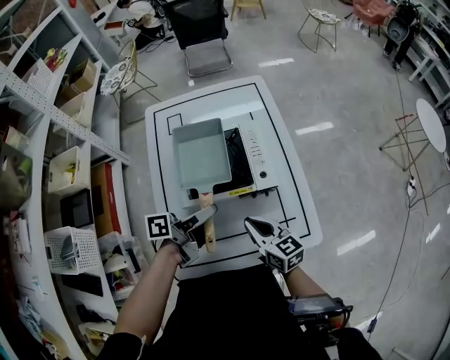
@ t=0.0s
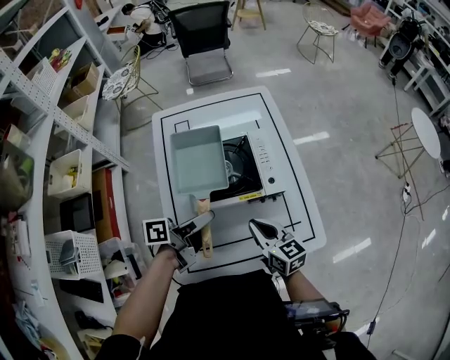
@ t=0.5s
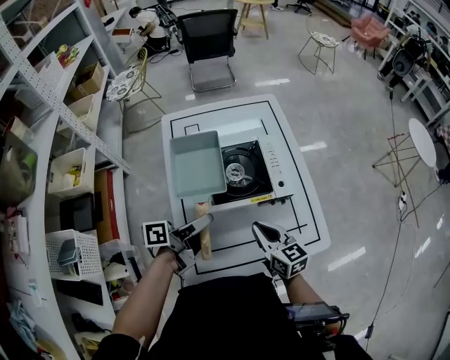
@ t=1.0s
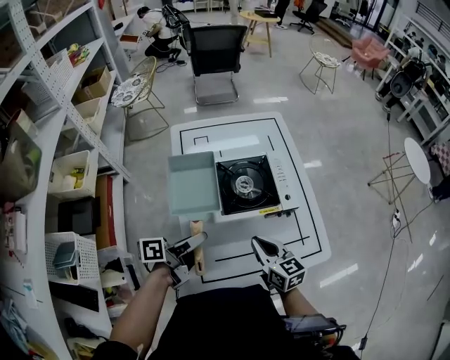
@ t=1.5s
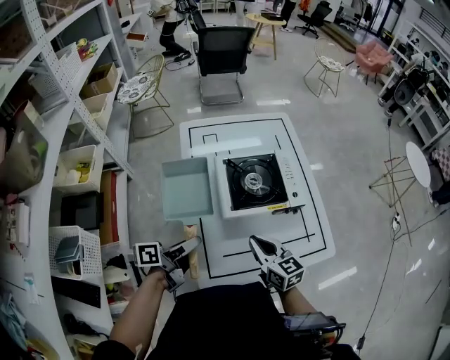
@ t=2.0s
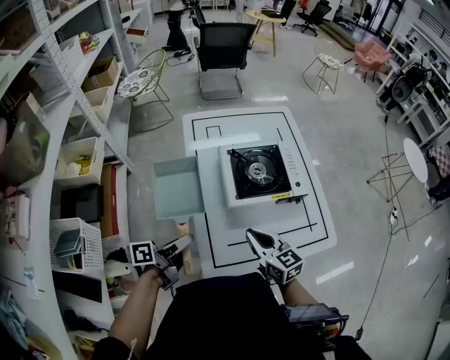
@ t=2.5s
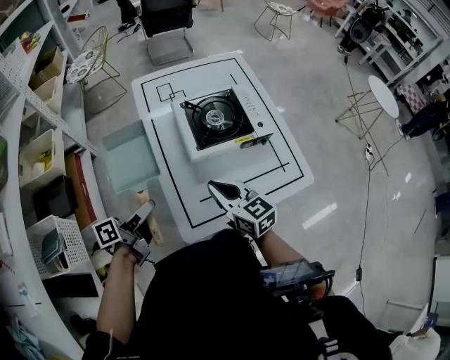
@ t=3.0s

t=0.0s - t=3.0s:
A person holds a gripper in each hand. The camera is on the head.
t=0.0s - t=1.5s: The right gripper shifts about 10 cm to the left. Meanwhile the left gripper moves to the left and backward, about 15 cm.
t=1.5s - t=3.0s: The right gripper shifts about 10 cm to the left. The left gripper travels to the left and backward by some 15 cm.

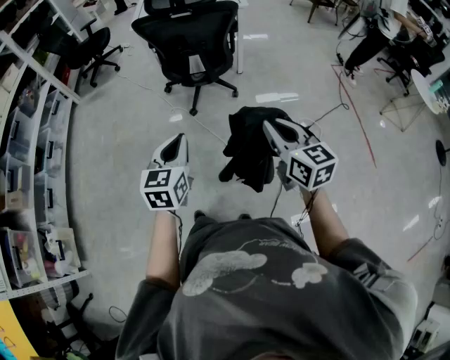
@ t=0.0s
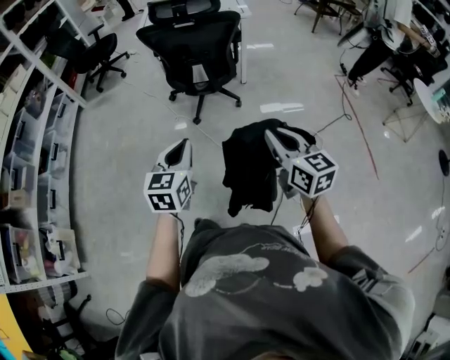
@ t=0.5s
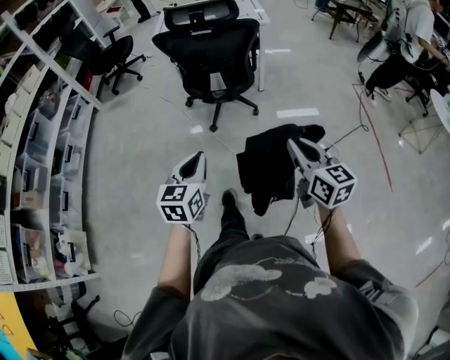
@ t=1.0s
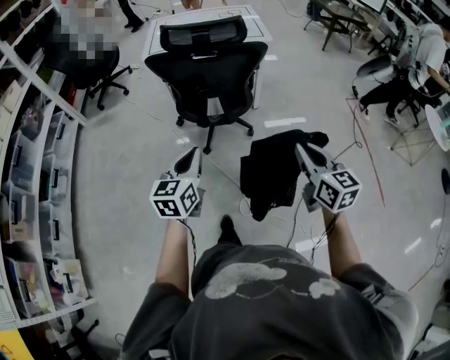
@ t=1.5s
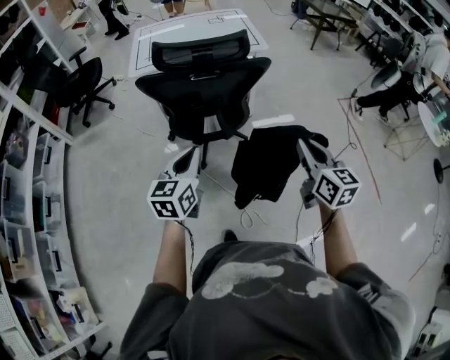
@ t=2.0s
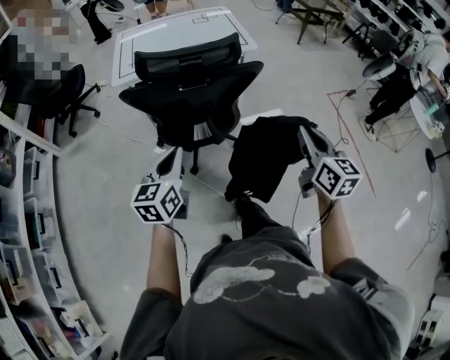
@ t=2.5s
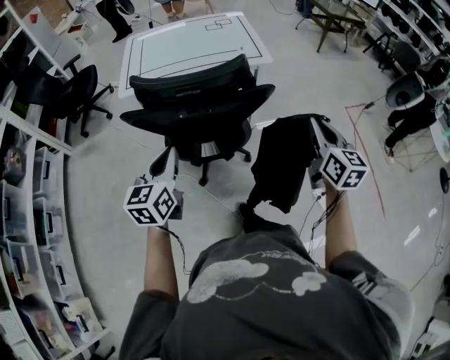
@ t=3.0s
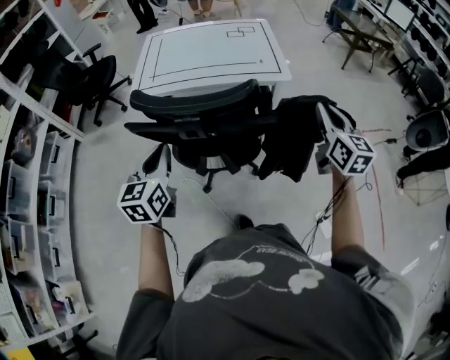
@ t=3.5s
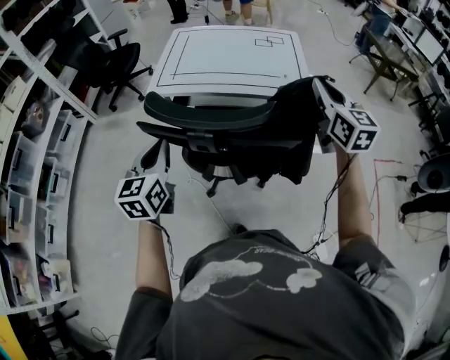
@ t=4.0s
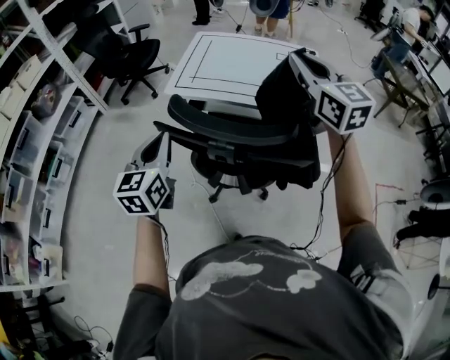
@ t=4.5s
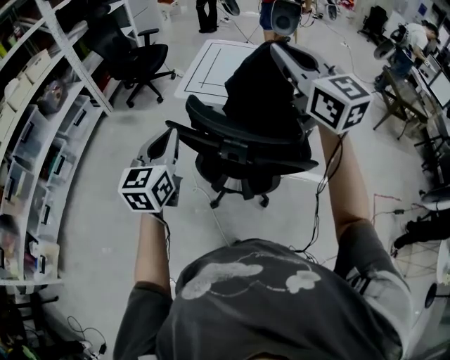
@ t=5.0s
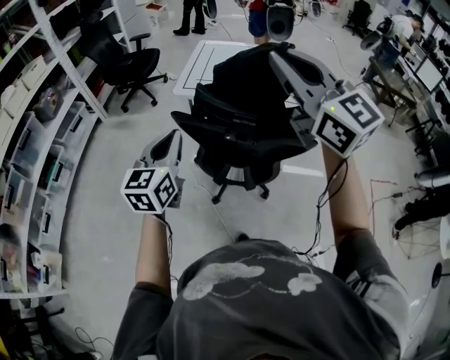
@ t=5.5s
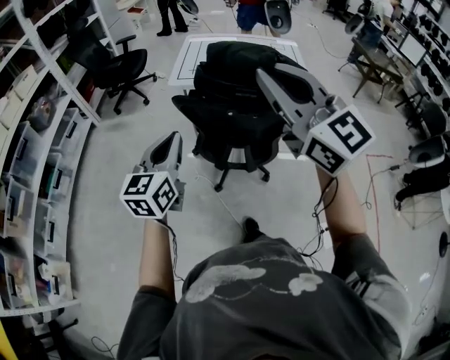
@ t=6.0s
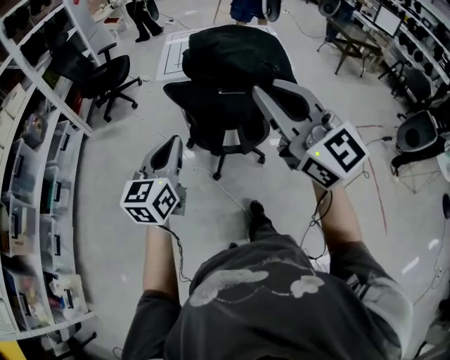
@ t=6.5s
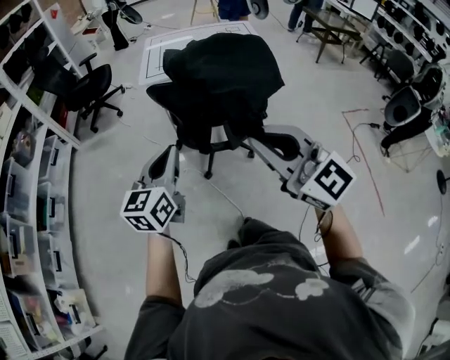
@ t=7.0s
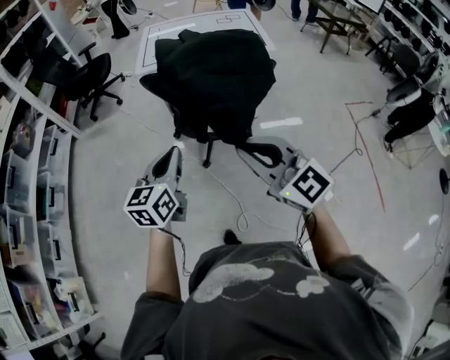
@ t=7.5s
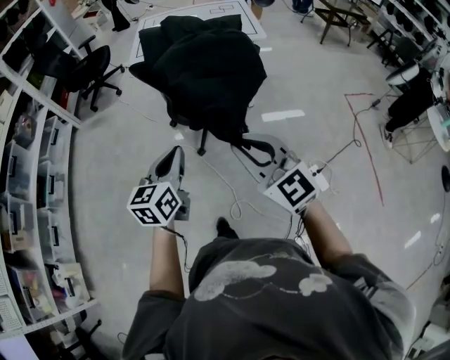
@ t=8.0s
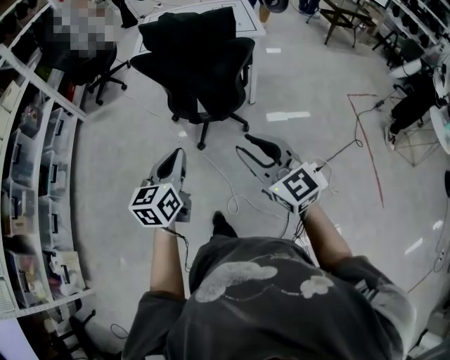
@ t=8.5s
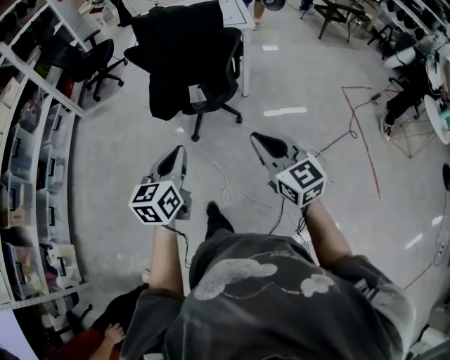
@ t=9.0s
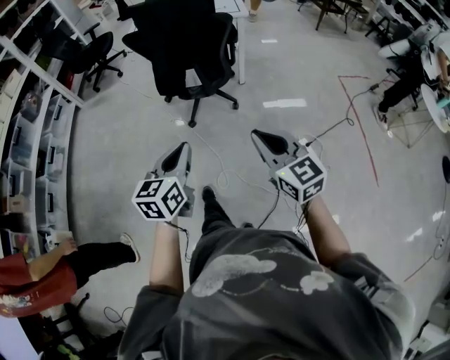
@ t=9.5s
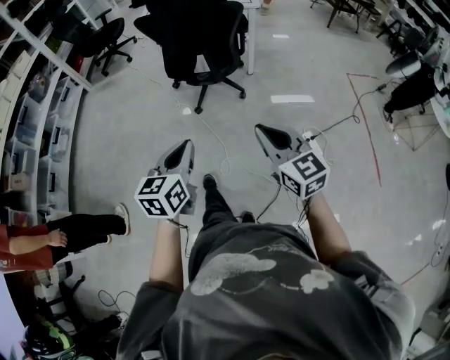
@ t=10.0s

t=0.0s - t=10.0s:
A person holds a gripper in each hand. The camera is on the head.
t=0.0s - t=2.0s: Both grippers travel together forward, about 35 cm.
t=2.0s - t=4.0s: The left gripper travels forward by some 25 cm, and rotates approximately 30 degrees. Meanwhile the right gripper goes roughly 50 cm forward.
t=4.0s - t=6.0s: The right gripper travels to the left, backward and upward by some 40 cm, and turns by approximately 30 degrees, while the left gripper is displaced backward, to the left and upward by approximately 15 cm.
t=6.0s - t=8.0s: Both grippers move backward and downward, roughly 25 cm.
t=8.0s - t=10.0s: The right gripper is displaced backward and to the right by about 25 cm, and opens, then closes once more. The left gripper heads backward, covering roughly 30 cm.

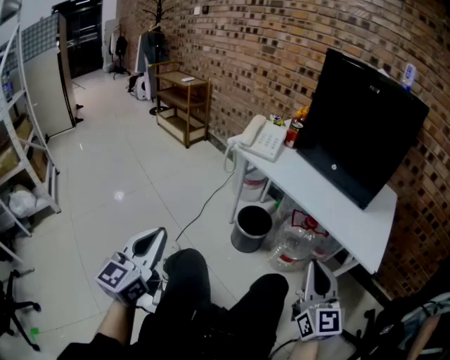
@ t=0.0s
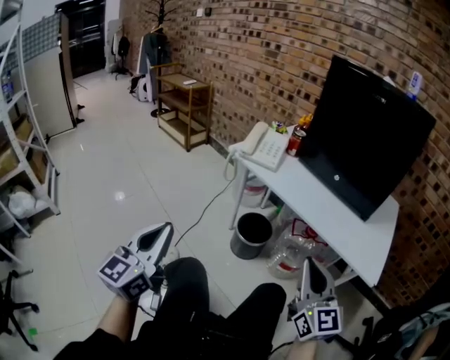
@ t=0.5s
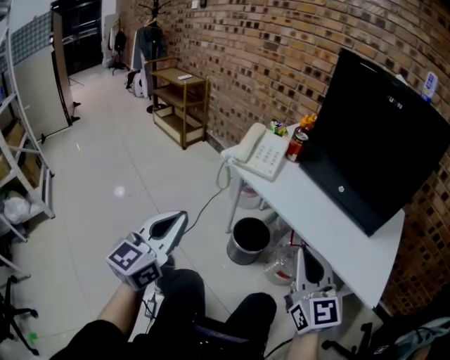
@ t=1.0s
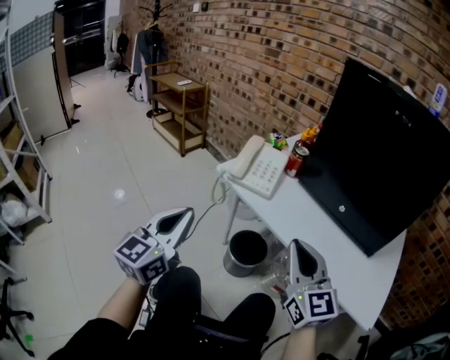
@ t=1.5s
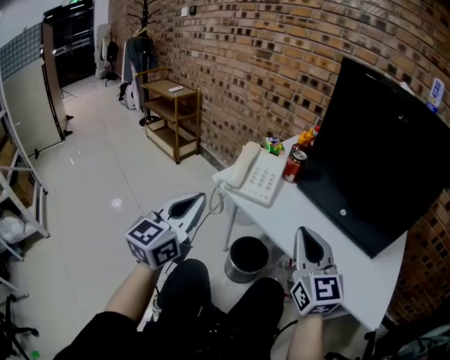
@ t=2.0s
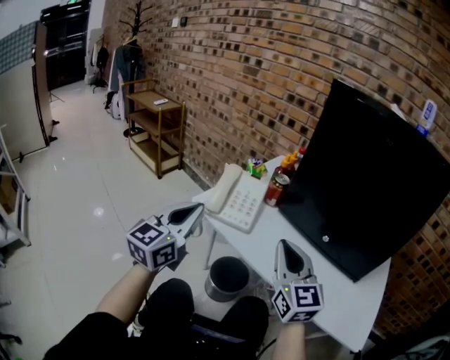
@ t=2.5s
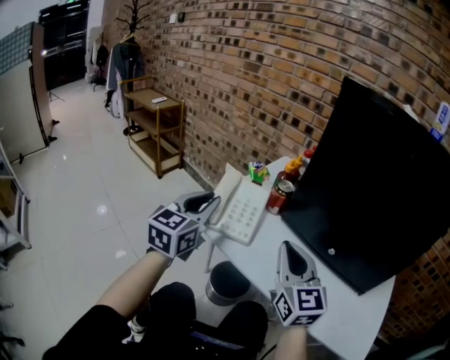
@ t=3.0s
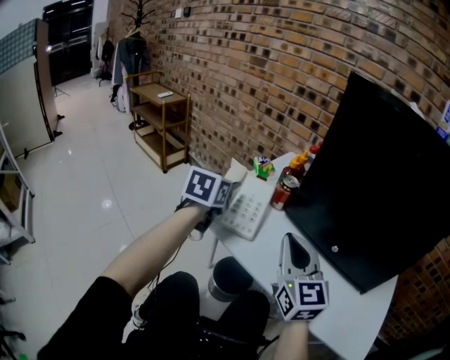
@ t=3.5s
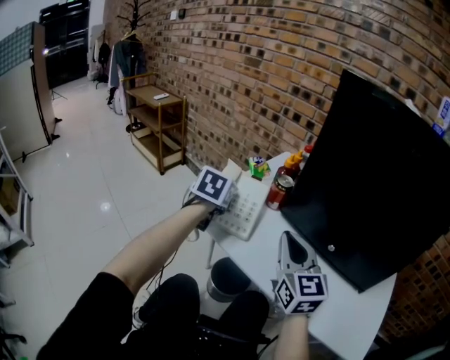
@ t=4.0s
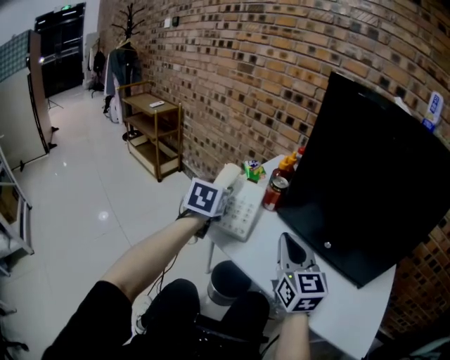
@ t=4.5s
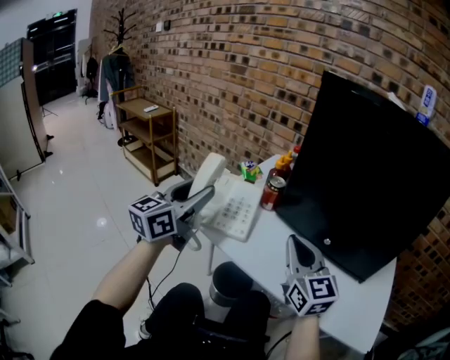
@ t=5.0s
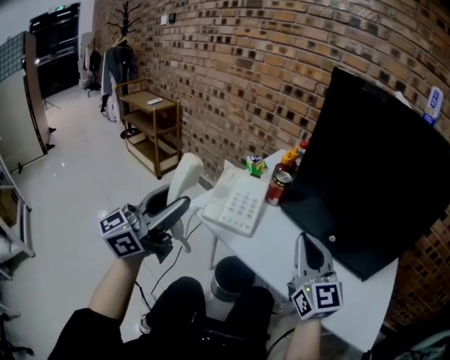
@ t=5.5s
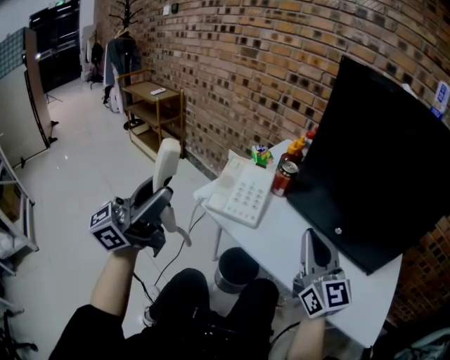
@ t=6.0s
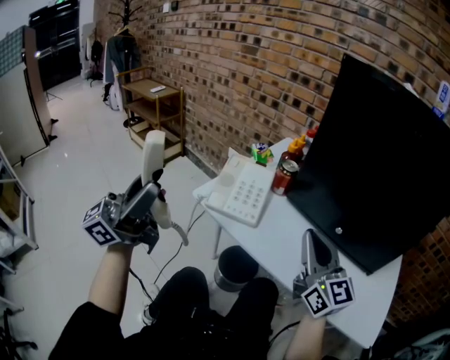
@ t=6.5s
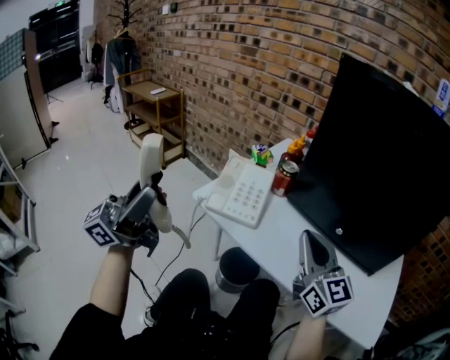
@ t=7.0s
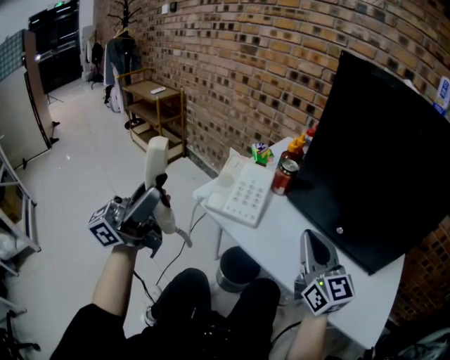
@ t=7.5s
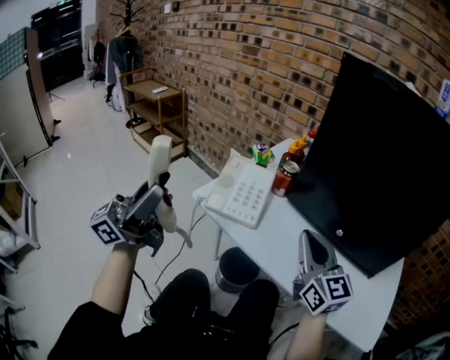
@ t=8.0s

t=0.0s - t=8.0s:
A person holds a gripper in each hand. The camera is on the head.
t=0.0s - t=2.0s: Both grippers move forward, some 30 cm.
t=2.0s - t=4.0s: The left gripper travels forward by approximately 30 cm, angles its fingers downward, by roughly 40 degrees, and opens up; the right gripper shifts some 10 cm forward.
t=4.0s - t=6.0s: The left gripper moves backward and upward, approximately 30 cm, and tilts its fingers some 70 degrees upward. Meanwhile the right gripper shifts about 5 cm backward.
t=6.0s - t=8.0s: The grippers move only a little.

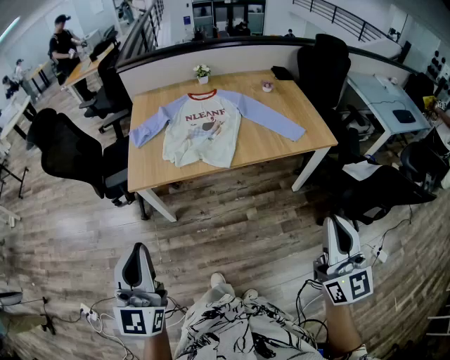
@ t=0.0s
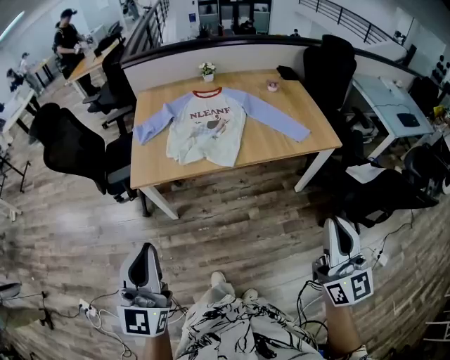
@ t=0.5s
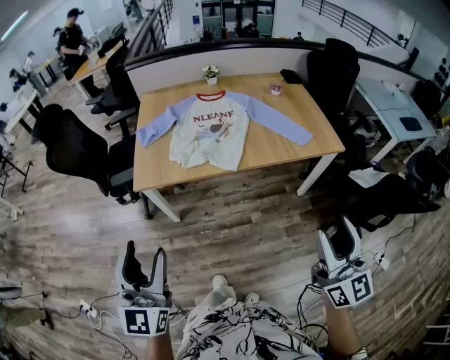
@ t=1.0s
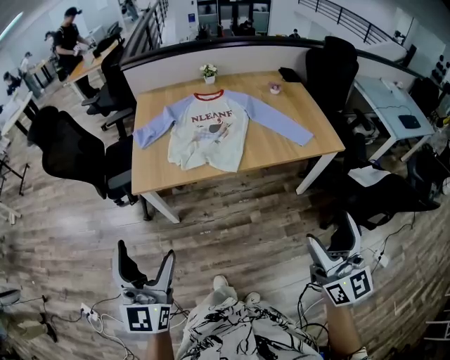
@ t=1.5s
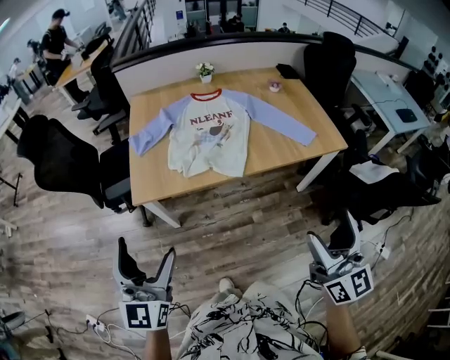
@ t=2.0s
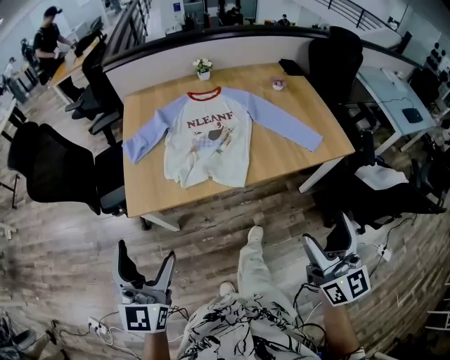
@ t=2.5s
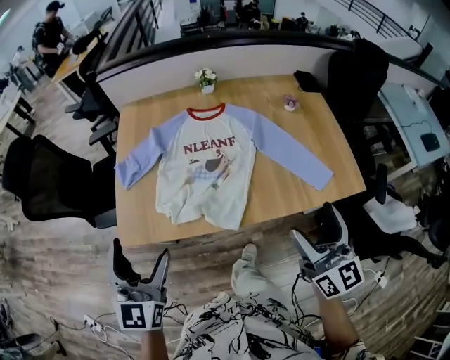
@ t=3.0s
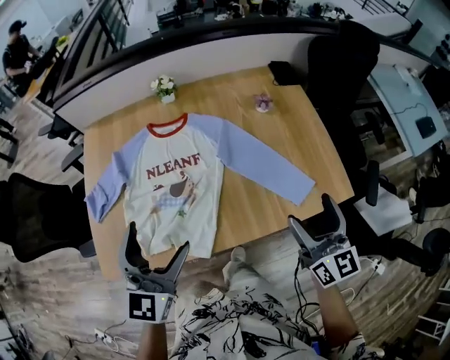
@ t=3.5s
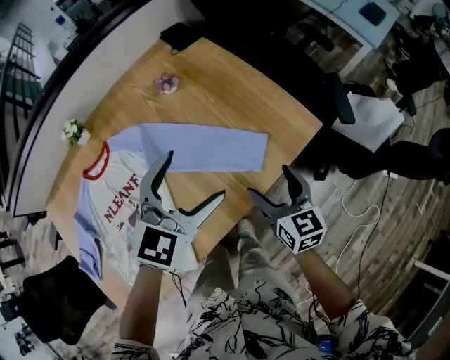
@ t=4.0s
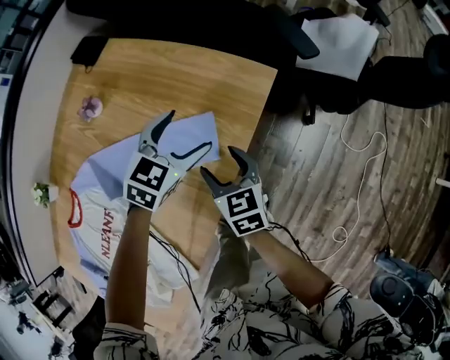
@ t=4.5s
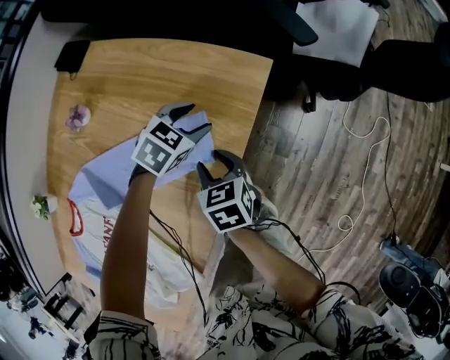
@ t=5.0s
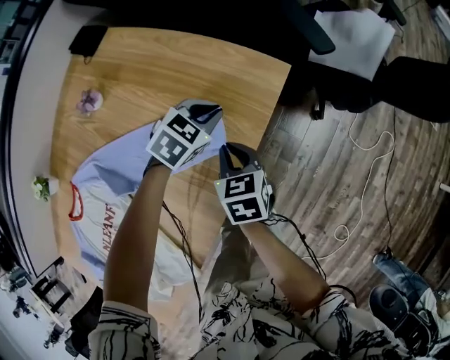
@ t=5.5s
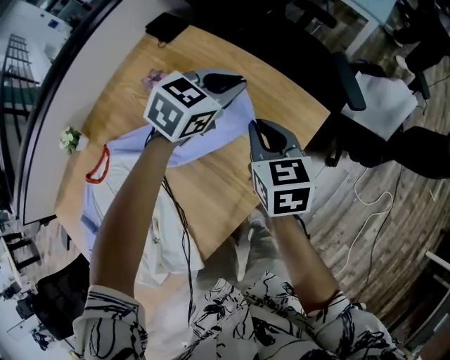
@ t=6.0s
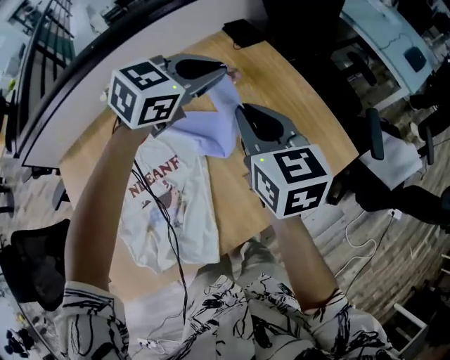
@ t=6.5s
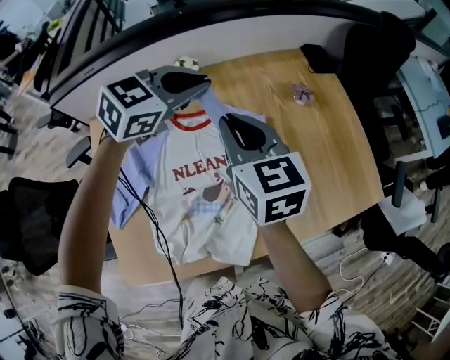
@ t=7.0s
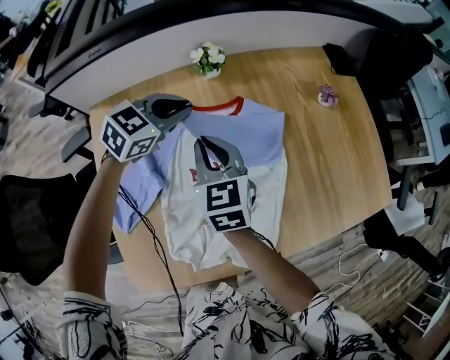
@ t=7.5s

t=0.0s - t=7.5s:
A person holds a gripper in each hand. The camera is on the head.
t=0.0s - t=2.0s: The two grippers go approximately 10 cm forward and to the left. The right gripper opens; the left gripper opens up.
t=2.0s - t=4.0s: The two grippers travel together, approximately 60 cm. The right gripper tilts its fingers about 30 degrees downward. Meanwhile the left gripper swivels about 60 degrees.
t=4.0s - t=5.5s: The right gripper travels downward by some 15 cm, swivels some 30 degrees, and closes its fingers. The left gripper is displaced downward by about 25 cm, swivels about 50 degrees, and closes its fingers.
t=5.5s - t=7.5s: Both grippers are carried approximately 70 cm. The left gripper rotates approximately 50 degrees; the right gripper swivels roughly 50 degrees.
